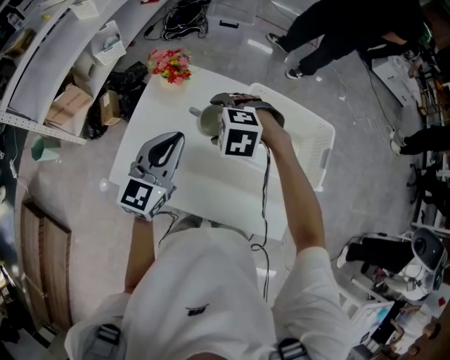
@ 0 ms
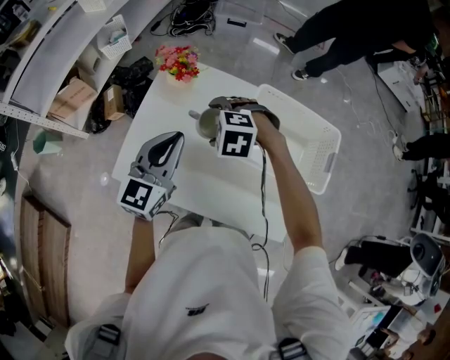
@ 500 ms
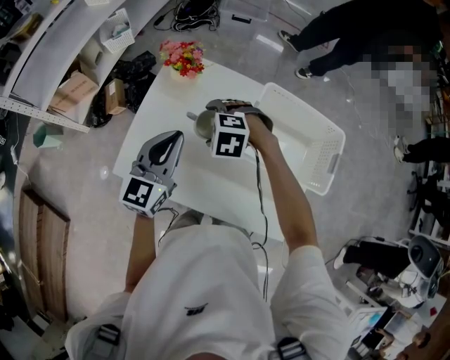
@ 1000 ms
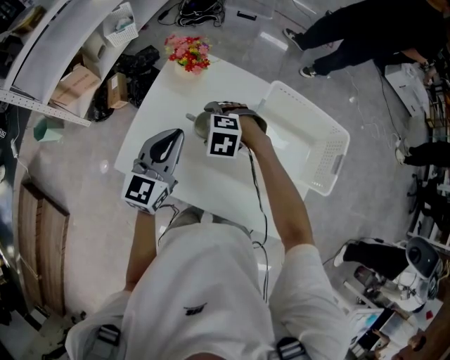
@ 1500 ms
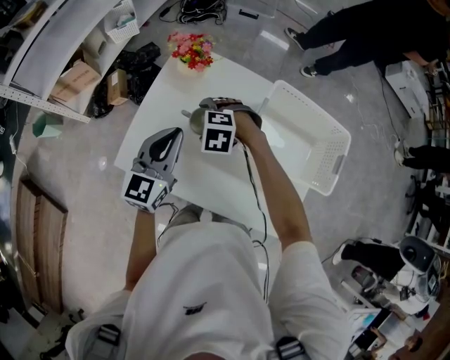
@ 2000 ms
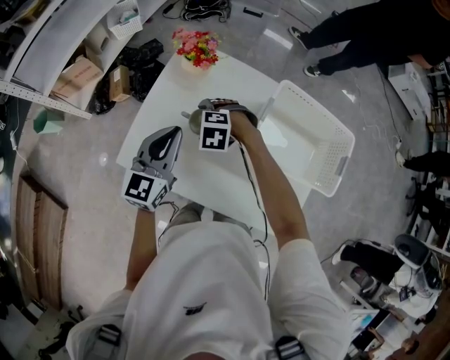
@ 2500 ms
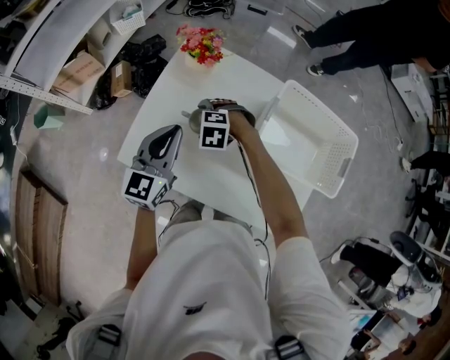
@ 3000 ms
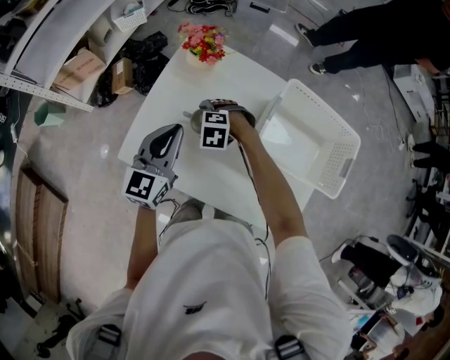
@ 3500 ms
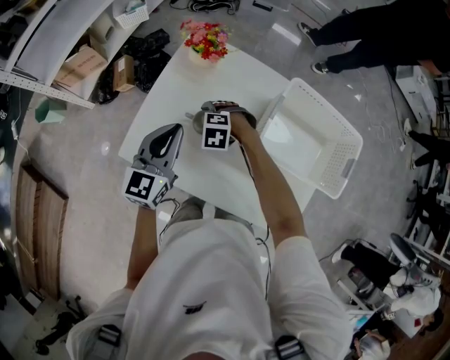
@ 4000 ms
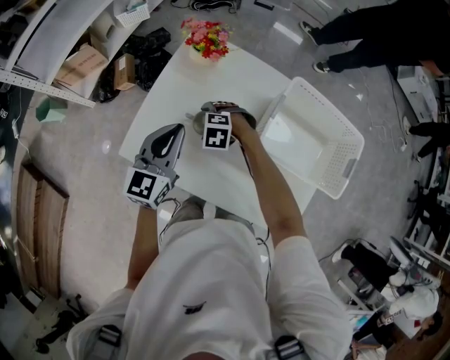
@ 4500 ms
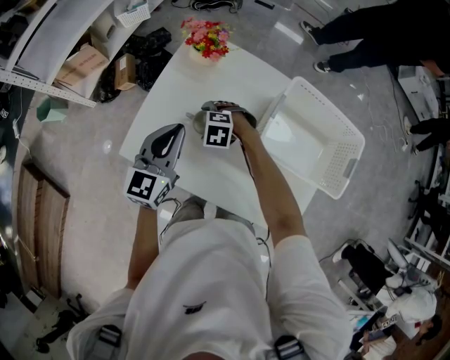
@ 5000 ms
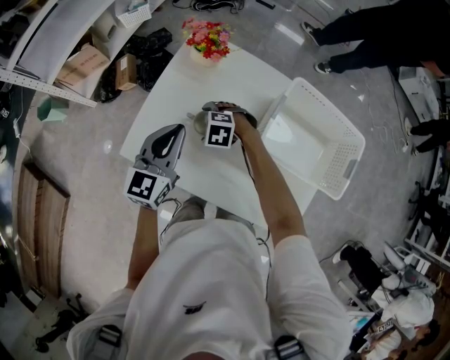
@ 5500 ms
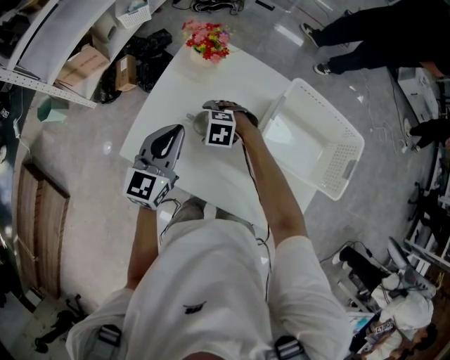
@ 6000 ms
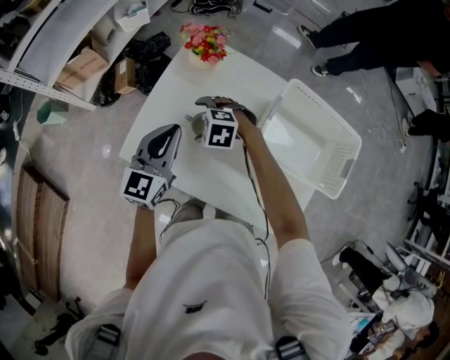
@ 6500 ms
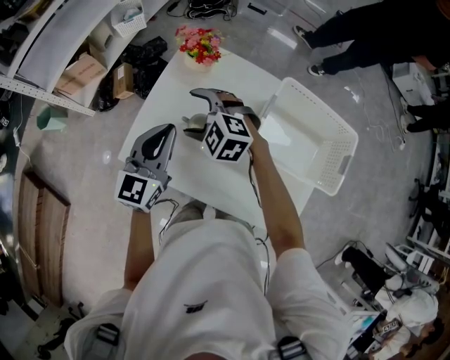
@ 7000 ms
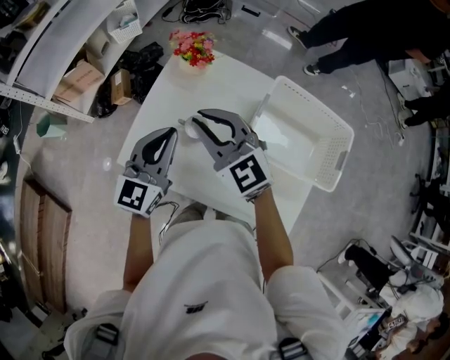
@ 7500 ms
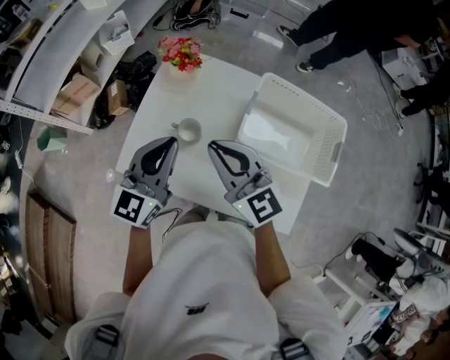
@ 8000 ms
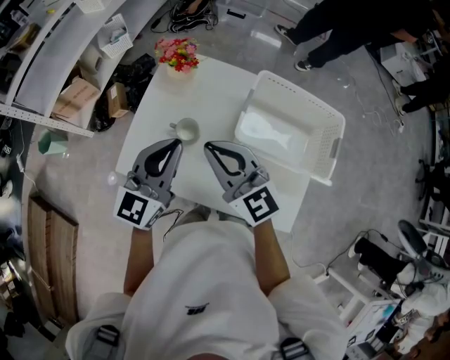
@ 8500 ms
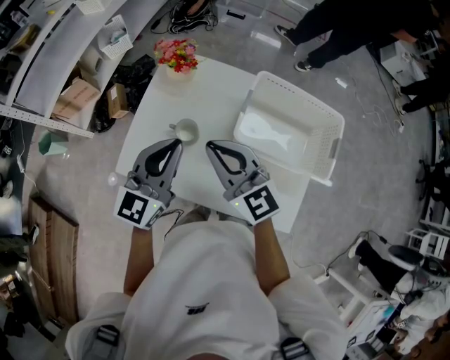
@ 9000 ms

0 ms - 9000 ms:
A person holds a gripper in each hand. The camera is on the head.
0 ms - 2000 ms: The right gripper shifts approximately 15 cm downward and to the left. Meanwhile the left gripper goes approximately 10 cm to the left and downward.
2000 ms - 4500 ms: The right gripper heads downward, covering about 10 cm.
4500 ms - 7000 ms: The right gripper goes about 20 cm upward, and angles its fingers upward, by some 30 degrees.
7000 ms - 9000 ms: The right gripper moves upward, backward and to the right, approximately 20 cm, points its fingers some 40 degrees further upward, and closes its fingers, while the left gripper heads to the right, upward and backward, covering about 10 cm.

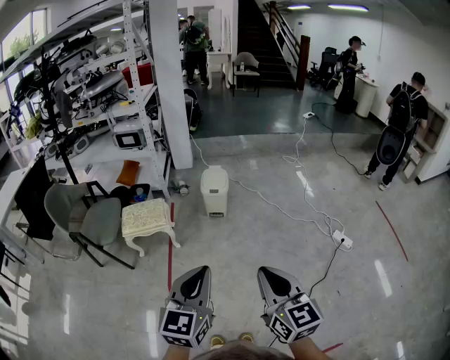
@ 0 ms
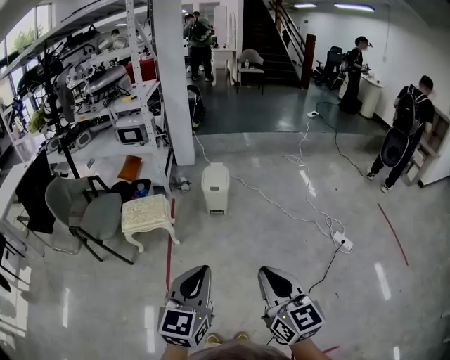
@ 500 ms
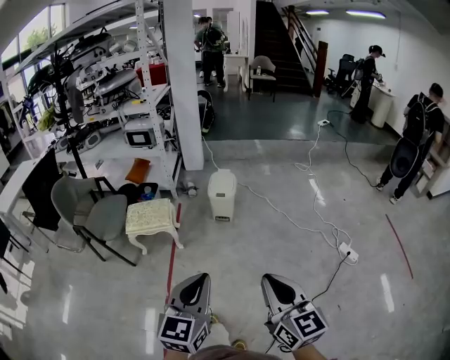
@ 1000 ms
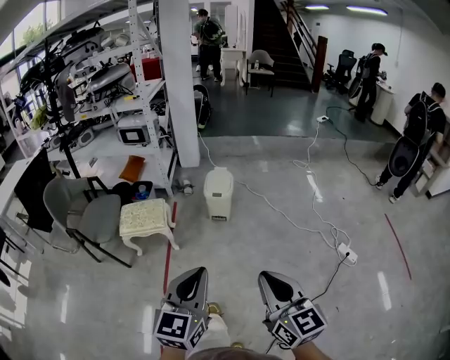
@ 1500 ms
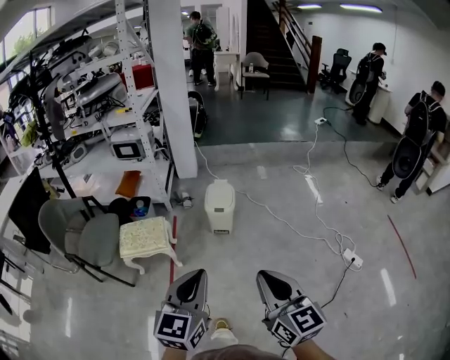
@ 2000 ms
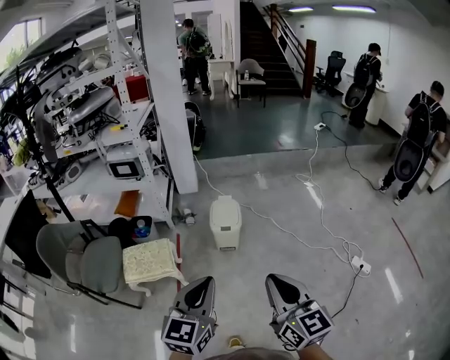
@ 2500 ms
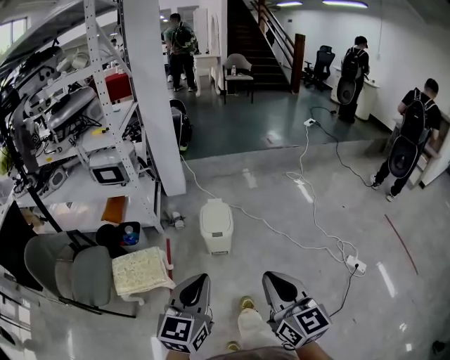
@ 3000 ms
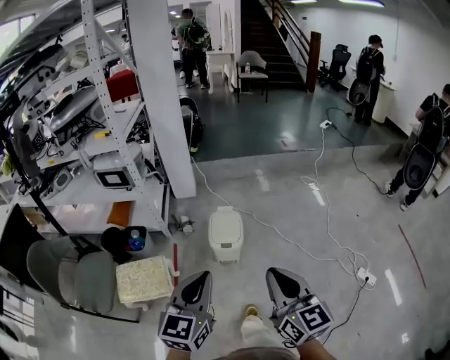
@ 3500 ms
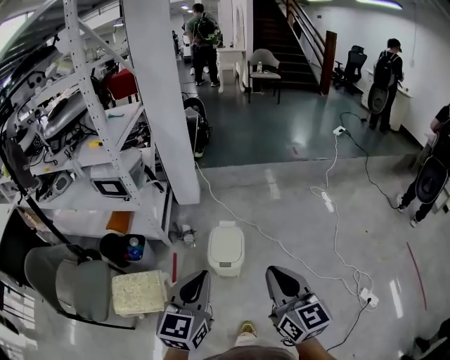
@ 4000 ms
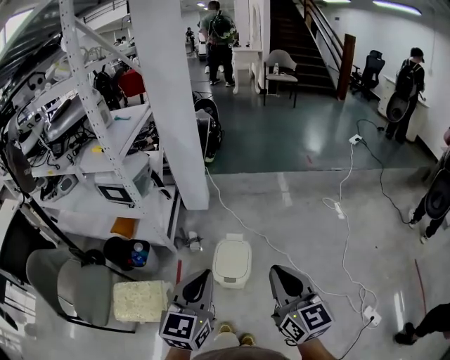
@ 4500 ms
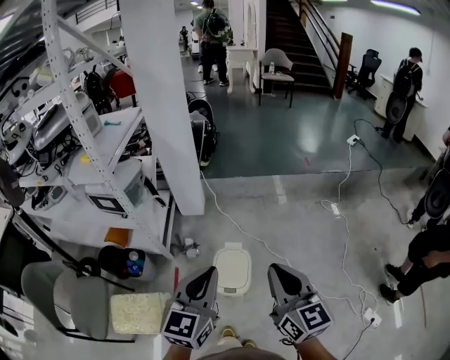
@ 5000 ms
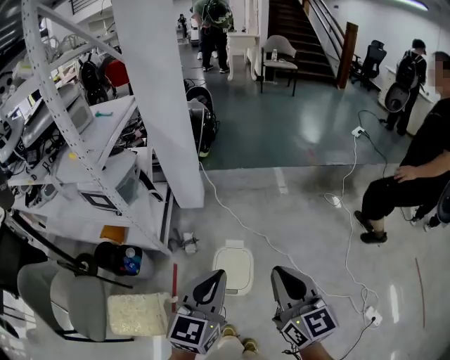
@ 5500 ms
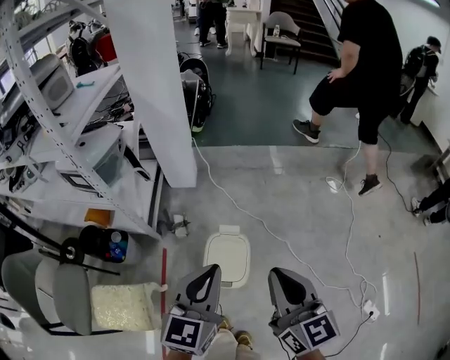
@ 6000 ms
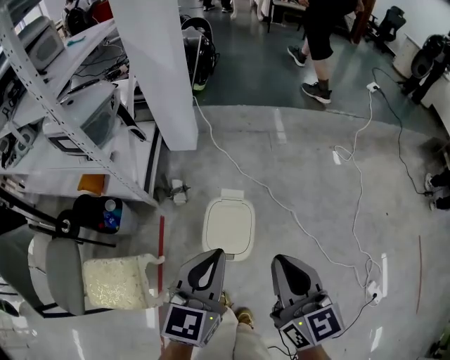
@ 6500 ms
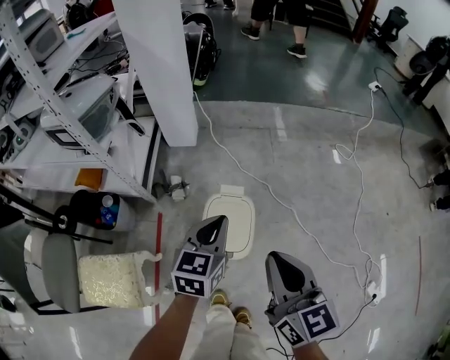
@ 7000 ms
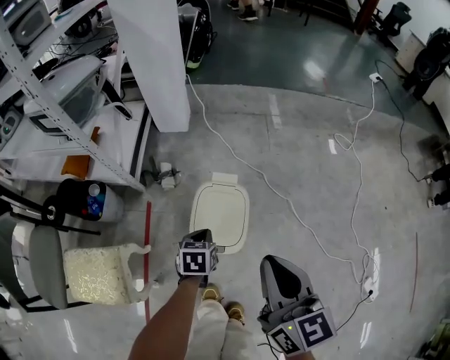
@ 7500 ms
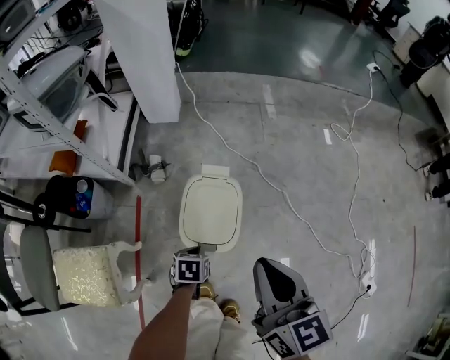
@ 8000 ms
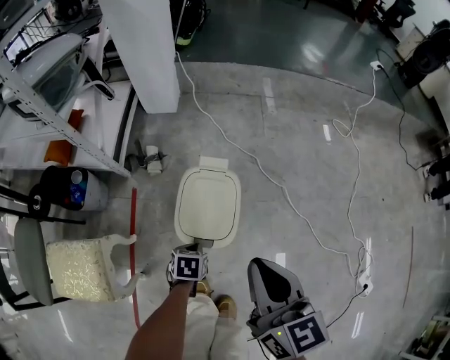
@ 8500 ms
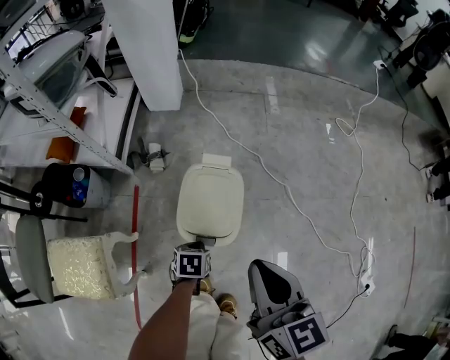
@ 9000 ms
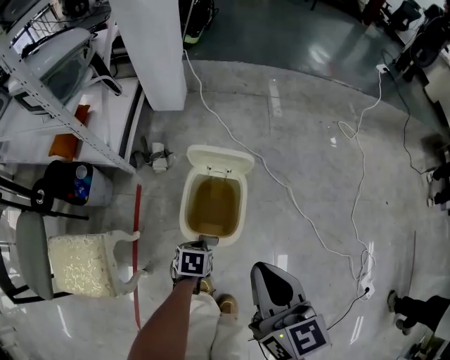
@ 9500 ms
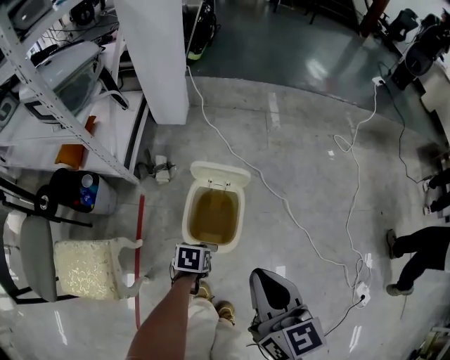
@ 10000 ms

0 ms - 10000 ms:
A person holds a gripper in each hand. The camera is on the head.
0 ms - 2000 ms: The two grippers go about 15 cm forward.
2000 ms - 4000 ms: The two grippers travel together, forward, about 40 cm.
4000 ms - 6000 ms: The two grippers go approximately 25 cm forward and downward.
6000 ms - 8000 ms: The left gripper travels downward by about 50 cm, and points its fingers about 50 degrees further downward. Meanwhile the right gripper is displaced downward by approximately 20 cm.
8000 ms - 10000 ms: There are only small adjustments of the grippers.

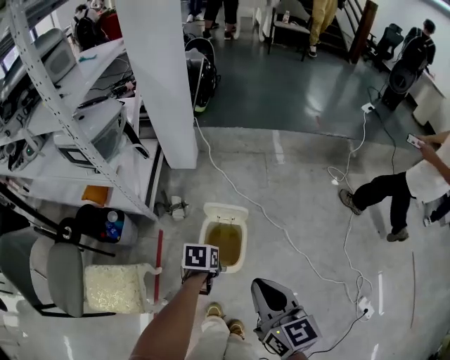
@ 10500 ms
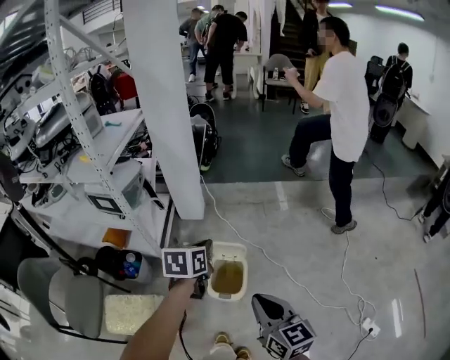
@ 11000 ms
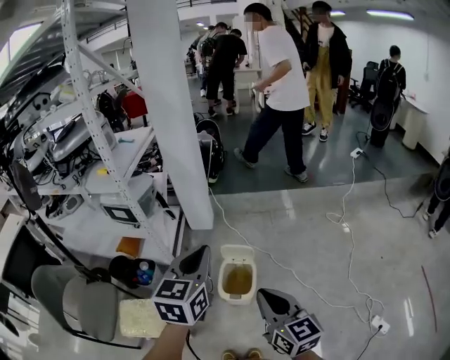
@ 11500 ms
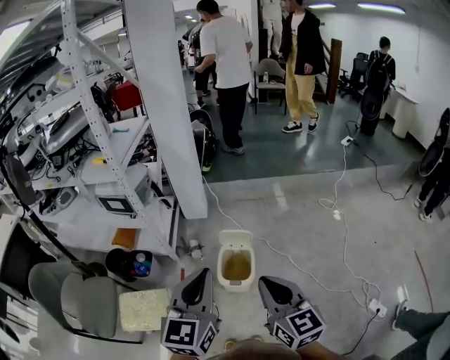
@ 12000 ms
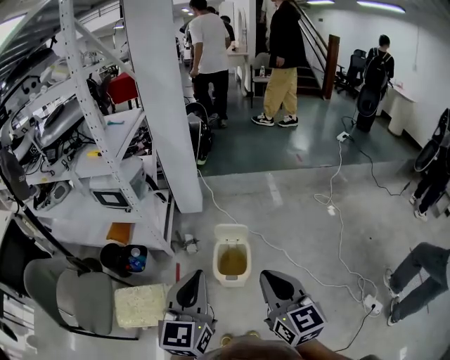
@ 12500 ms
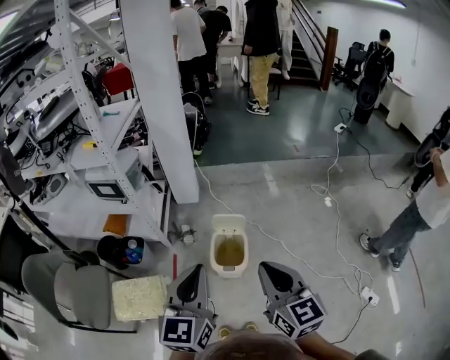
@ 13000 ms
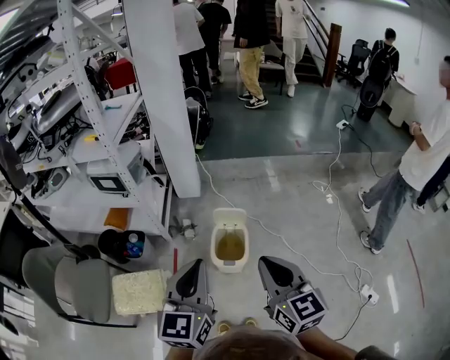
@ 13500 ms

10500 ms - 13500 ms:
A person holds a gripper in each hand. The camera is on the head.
10500 ms - 12000 ms: The left gripper travels upward and backward by some 50 cm, and tips its fingers upward by approximately 60 degrees; the right gripper heads upward and backward, covering approximately 20 cm.
12000 ms - 13500 ms: There are only small adjustments of the grippers.

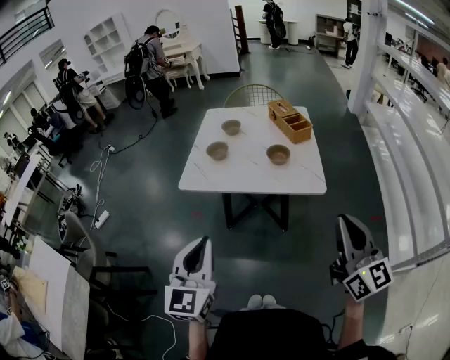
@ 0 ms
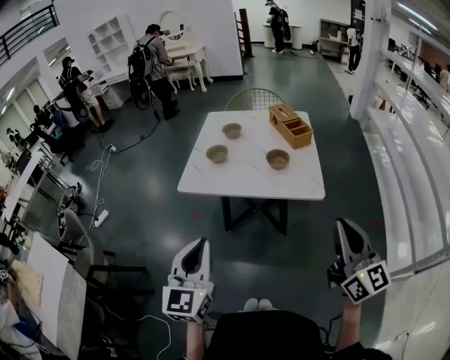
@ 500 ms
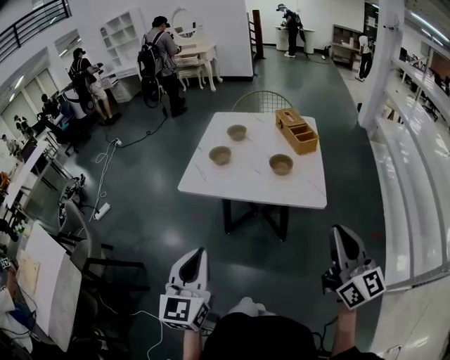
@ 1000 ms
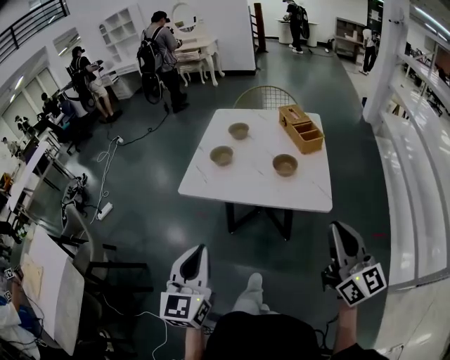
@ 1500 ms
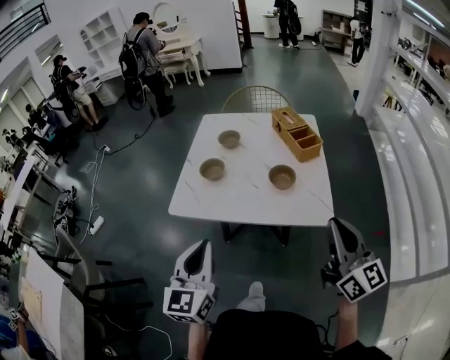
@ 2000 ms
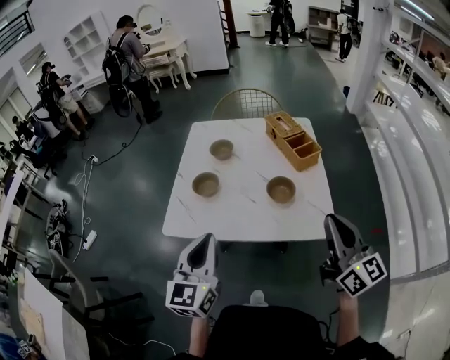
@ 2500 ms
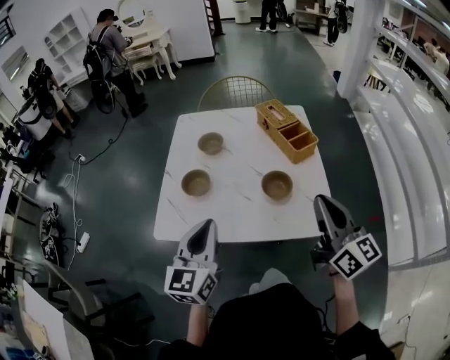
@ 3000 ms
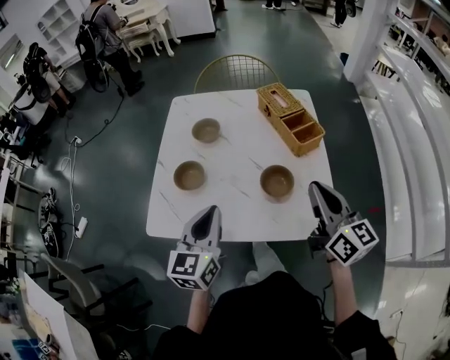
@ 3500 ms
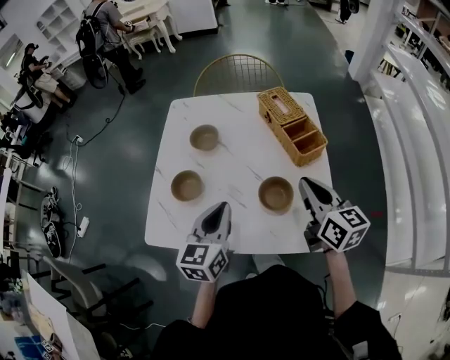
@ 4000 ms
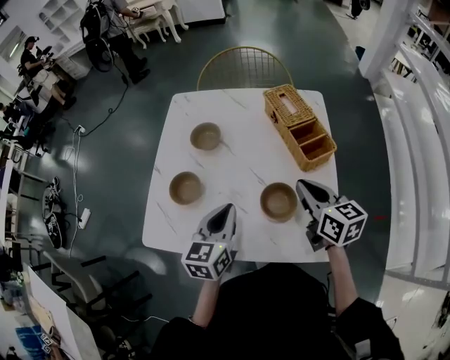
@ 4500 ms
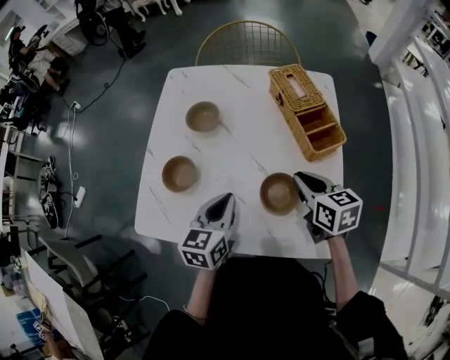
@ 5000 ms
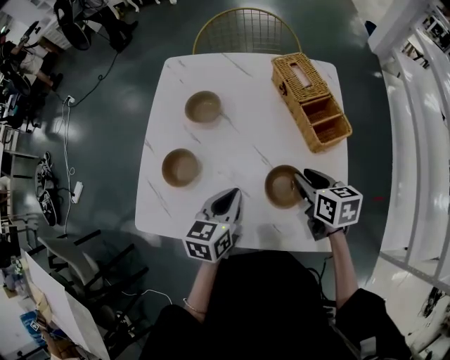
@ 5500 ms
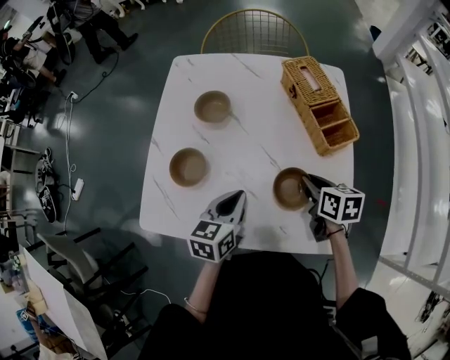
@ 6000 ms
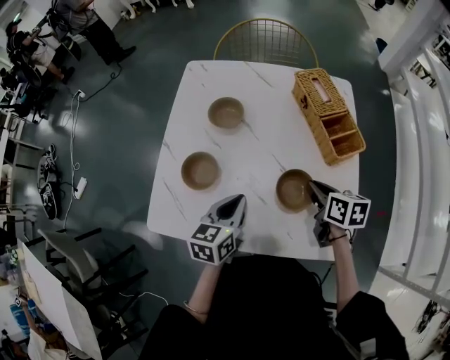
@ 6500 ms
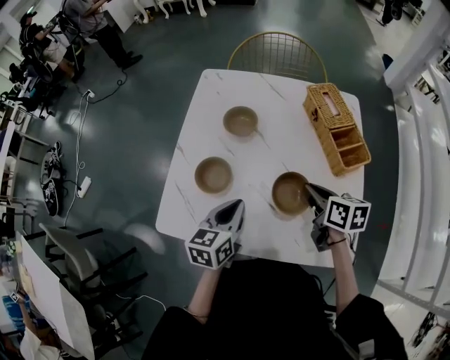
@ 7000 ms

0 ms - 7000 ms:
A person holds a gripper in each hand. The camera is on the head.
0 ms - 2000 ms: The grippers both shift forward by some 15 cm.
2000 ms - 3500 ms: Both grippers move forward, some 25 cm.
3500 ms - 5000 ms: The left gripper shifts approximately 15 cm downward, forward and to the right. Meanwhile the right gripper goes roughly 20 cm downward and forward, and tips its fingers downward by some 30 degrees.
5000 ms - 7000 ms: Both grippers move to the left, approximately 5 cm.
